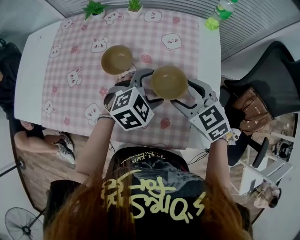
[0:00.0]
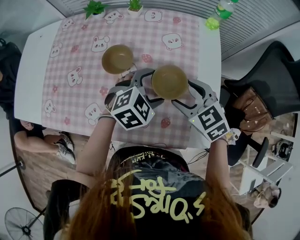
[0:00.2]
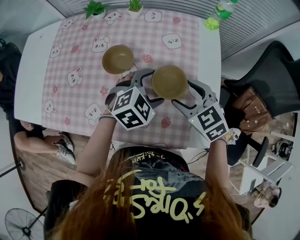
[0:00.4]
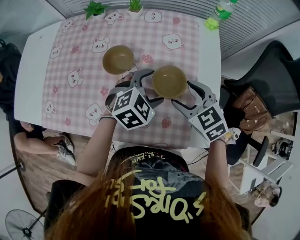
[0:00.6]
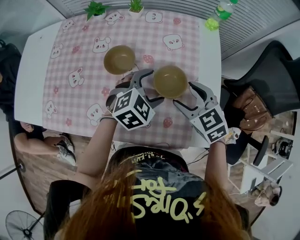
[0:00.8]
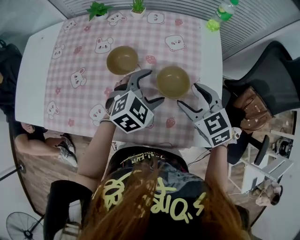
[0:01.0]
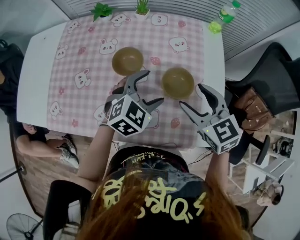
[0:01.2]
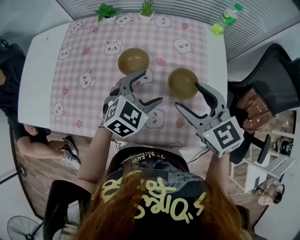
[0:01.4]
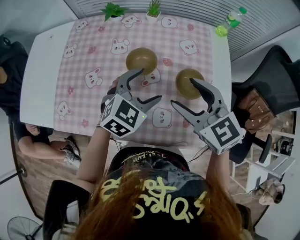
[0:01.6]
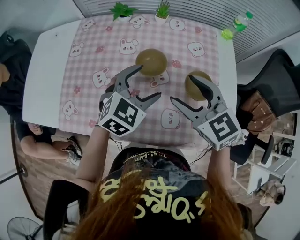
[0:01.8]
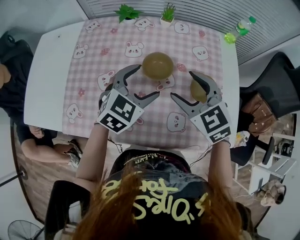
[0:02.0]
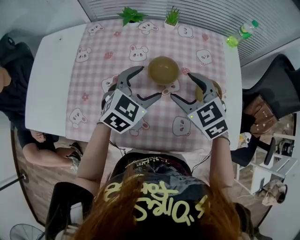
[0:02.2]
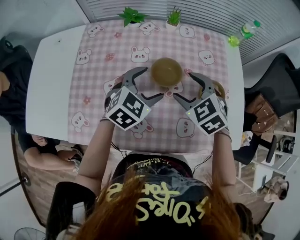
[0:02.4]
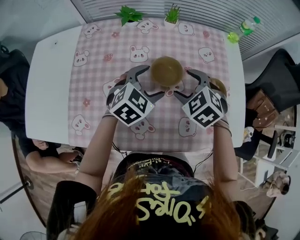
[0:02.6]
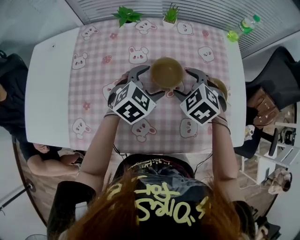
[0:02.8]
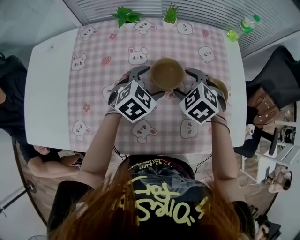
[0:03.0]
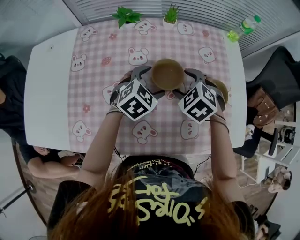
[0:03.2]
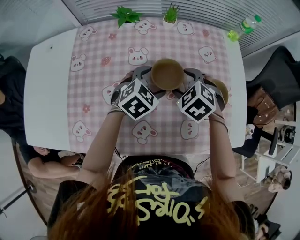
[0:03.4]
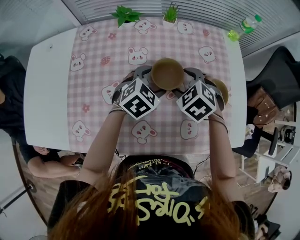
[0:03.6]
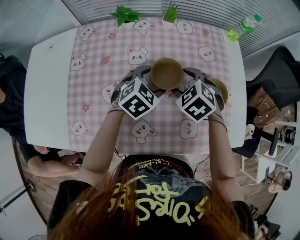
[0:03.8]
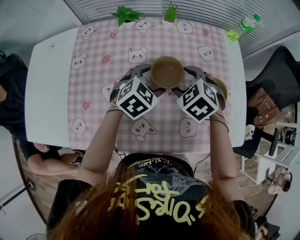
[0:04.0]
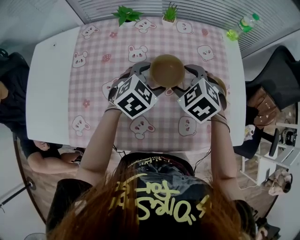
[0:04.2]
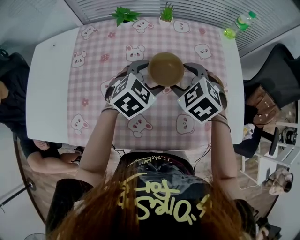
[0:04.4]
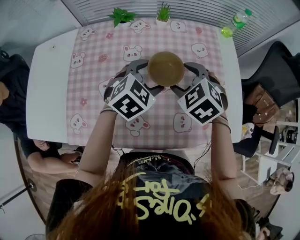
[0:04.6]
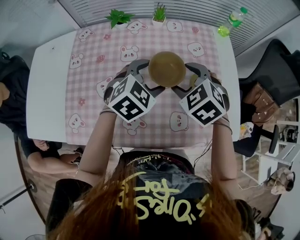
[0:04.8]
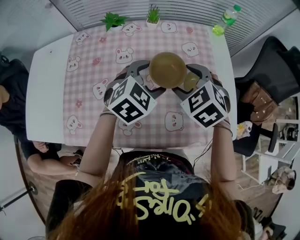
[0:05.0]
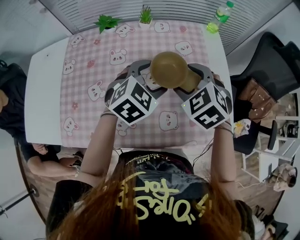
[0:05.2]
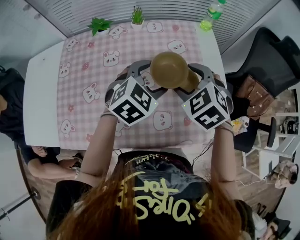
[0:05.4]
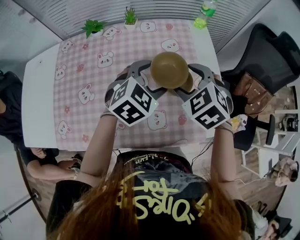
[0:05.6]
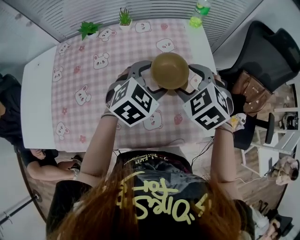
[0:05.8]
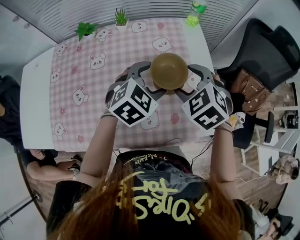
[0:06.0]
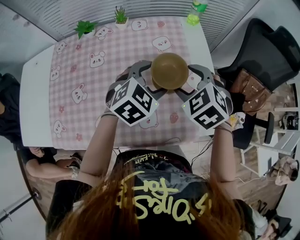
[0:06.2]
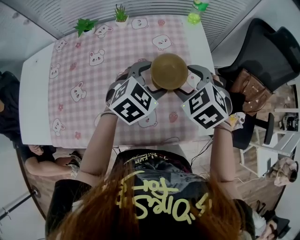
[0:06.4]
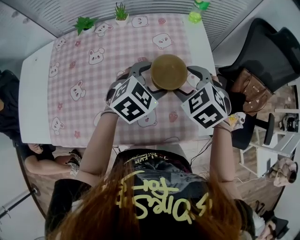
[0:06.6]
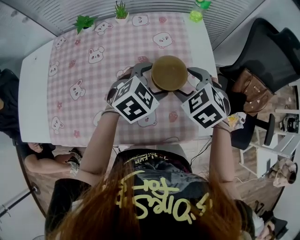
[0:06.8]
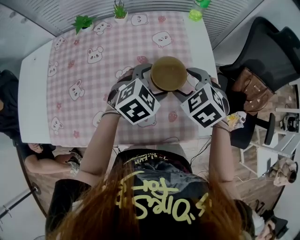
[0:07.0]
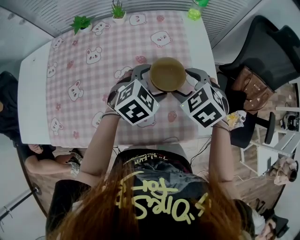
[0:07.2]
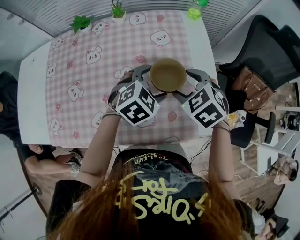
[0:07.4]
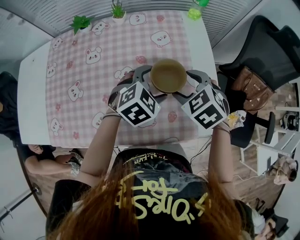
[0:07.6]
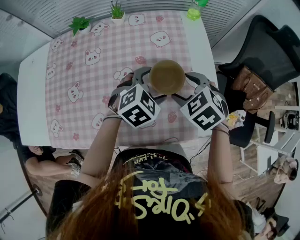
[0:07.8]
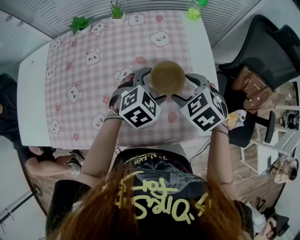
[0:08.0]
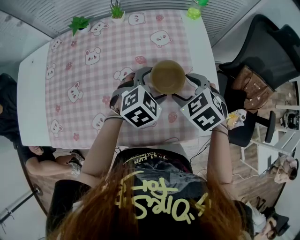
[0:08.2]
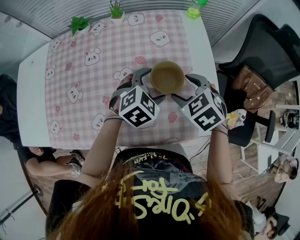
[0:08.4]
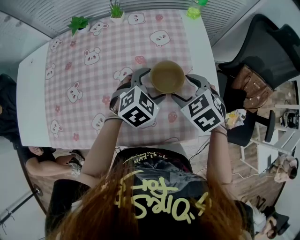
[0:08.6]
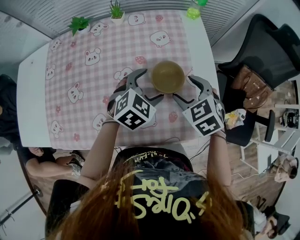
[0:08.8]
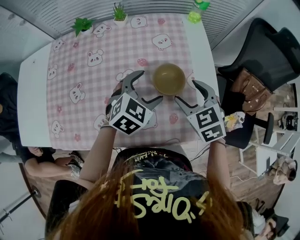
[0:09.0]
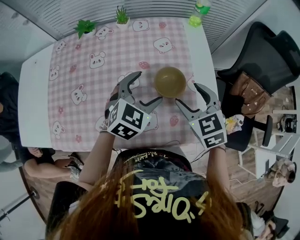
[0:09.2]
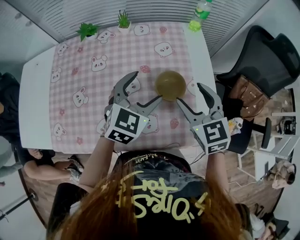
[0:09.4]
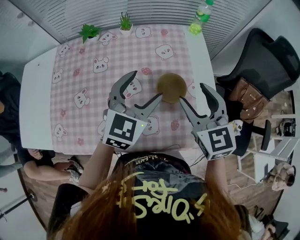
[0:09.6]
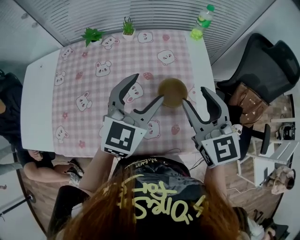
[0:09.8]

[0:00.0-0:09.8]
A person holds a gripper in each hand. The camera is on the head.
0:00.0 to 0:01.4: The right gripper goes some 10 cm upward. Meanwhile the left gripper is displaced to the left by approximately 10 cm.
0:01.4 to 0:02.8: The right gripper heads to the left, downward and forward, covering some 20 cm, and points its fingers roughly 30 degrees further downward. The left gripper shifts some 15 cm to the left and forward.
0:02.8 to 0:04.2: There are only small adjustments of the grippers.
0:04.2 to 0:05.6: Both grippers move to the right and upward, some 15 cm.
0:05.6 to 0:07.0: The grippers both shift downward by about 5 cm.
0:07.0 to 0:08.4: The grippers stay close to where they were, moving slightly.
0:08.4 to 0:09.8: Both grippers move upward, about 15 cm. The right gripper points its fingers some 40 degrees further upward. The left gripper tilts its fingers approximately 40 degrees upward.

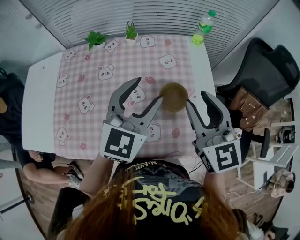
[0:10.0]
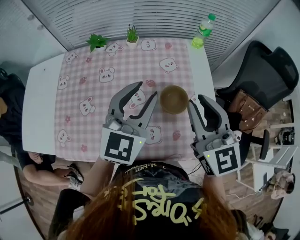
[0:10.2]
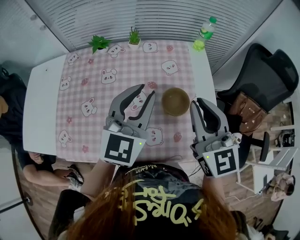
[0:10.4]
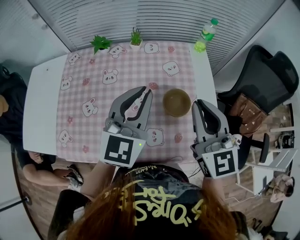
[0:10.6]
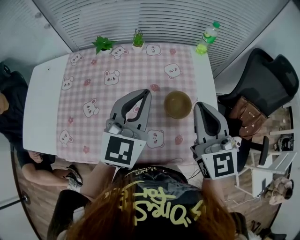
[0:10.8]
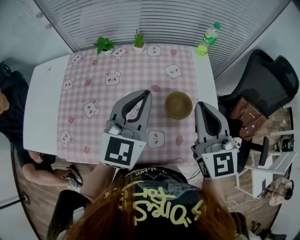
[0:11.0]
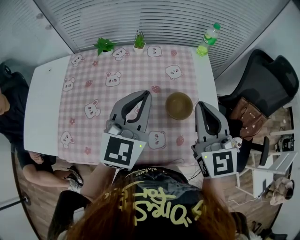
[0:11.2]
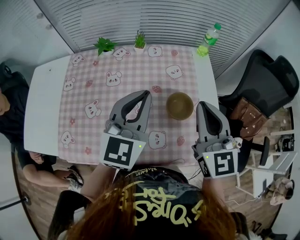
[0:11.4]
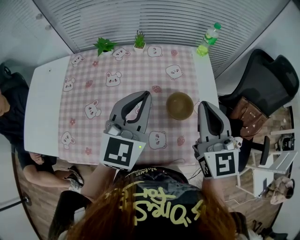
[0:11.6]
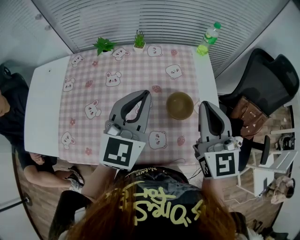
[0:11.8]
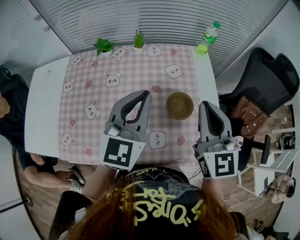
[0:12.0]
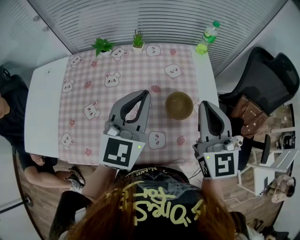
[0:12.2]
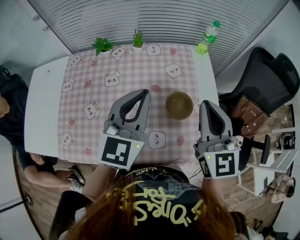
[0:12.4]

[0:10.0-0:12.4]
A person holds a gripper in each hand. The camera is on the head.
0:10.0 to 0:11.2: The right gripper closes up, while the left gripper closes.
0:11.2 to 0:12.4: The grippers stay close to where they were, moving slightly.

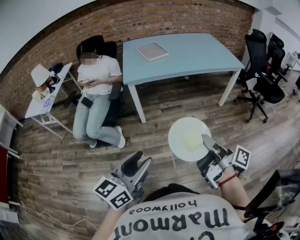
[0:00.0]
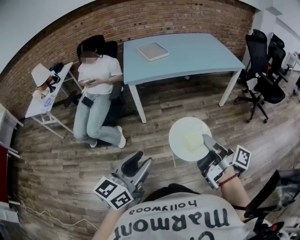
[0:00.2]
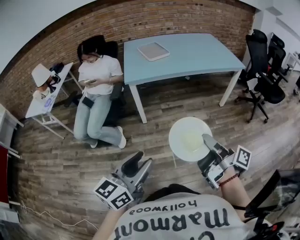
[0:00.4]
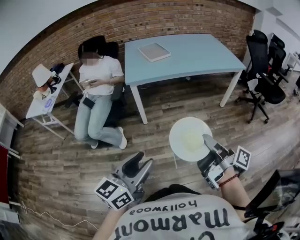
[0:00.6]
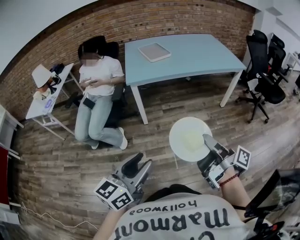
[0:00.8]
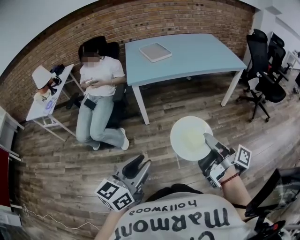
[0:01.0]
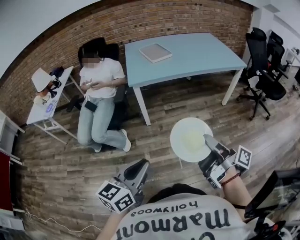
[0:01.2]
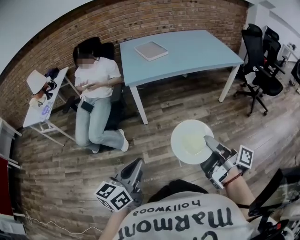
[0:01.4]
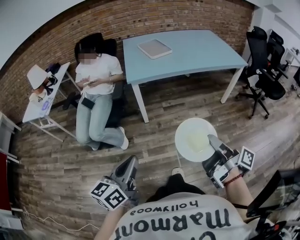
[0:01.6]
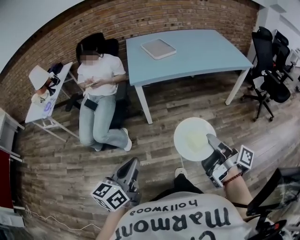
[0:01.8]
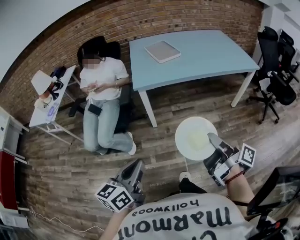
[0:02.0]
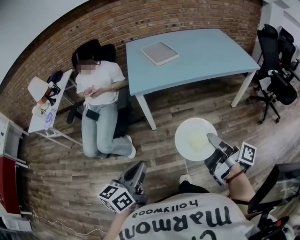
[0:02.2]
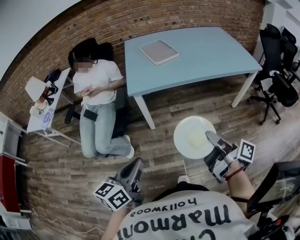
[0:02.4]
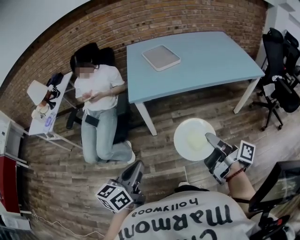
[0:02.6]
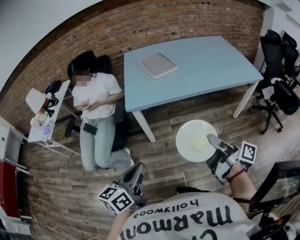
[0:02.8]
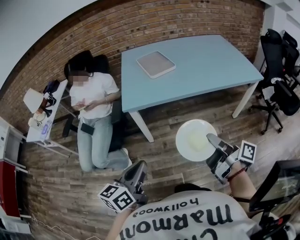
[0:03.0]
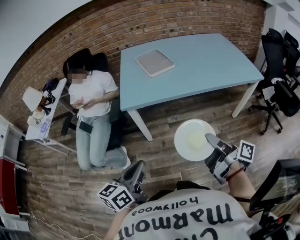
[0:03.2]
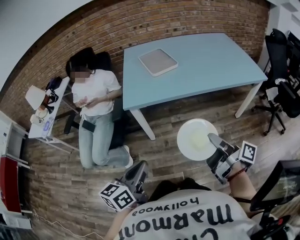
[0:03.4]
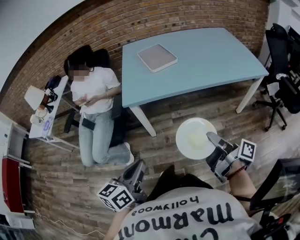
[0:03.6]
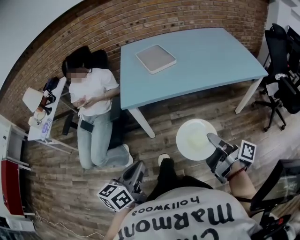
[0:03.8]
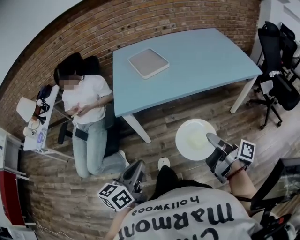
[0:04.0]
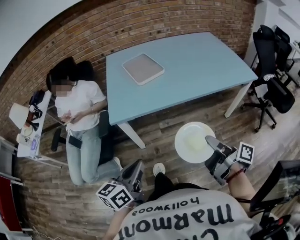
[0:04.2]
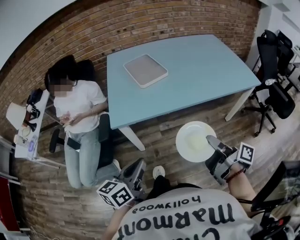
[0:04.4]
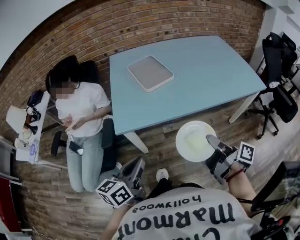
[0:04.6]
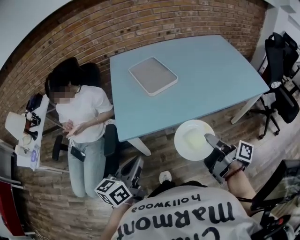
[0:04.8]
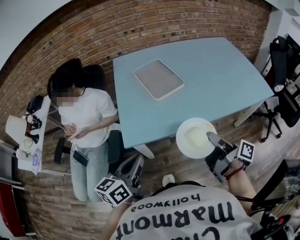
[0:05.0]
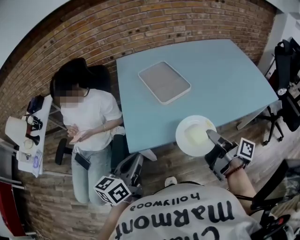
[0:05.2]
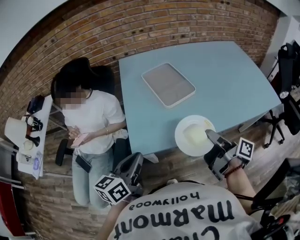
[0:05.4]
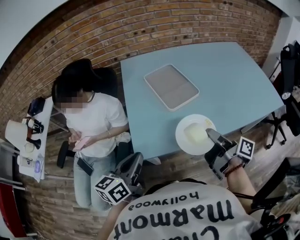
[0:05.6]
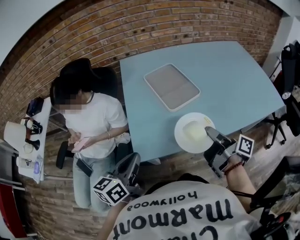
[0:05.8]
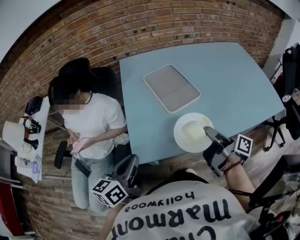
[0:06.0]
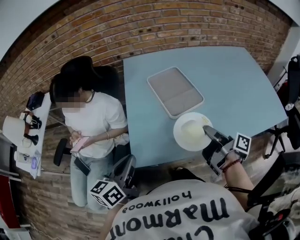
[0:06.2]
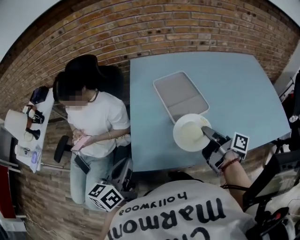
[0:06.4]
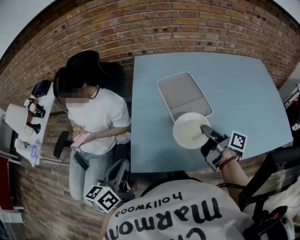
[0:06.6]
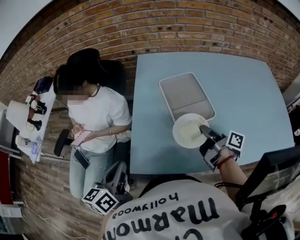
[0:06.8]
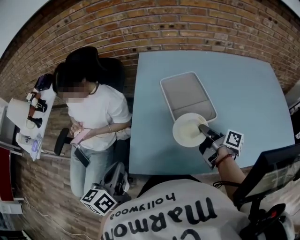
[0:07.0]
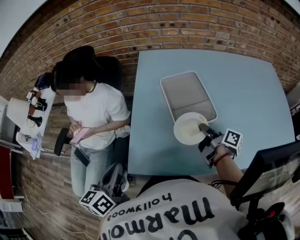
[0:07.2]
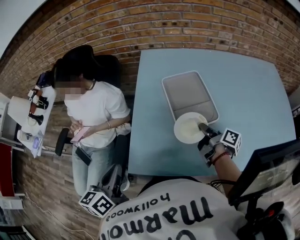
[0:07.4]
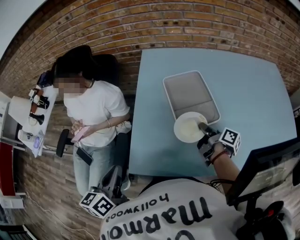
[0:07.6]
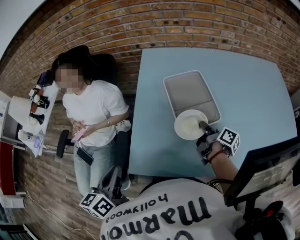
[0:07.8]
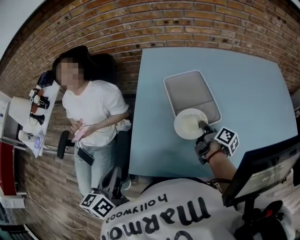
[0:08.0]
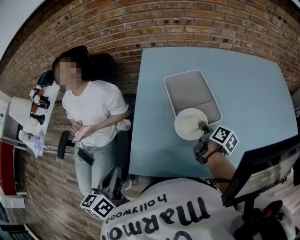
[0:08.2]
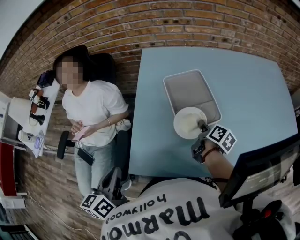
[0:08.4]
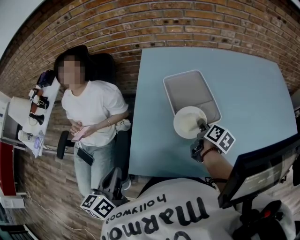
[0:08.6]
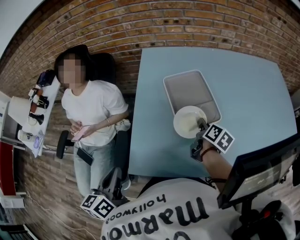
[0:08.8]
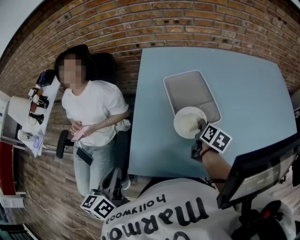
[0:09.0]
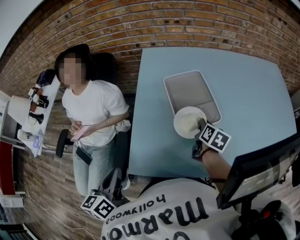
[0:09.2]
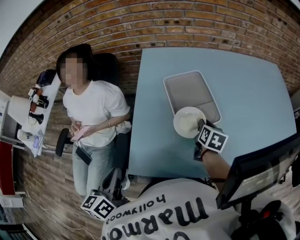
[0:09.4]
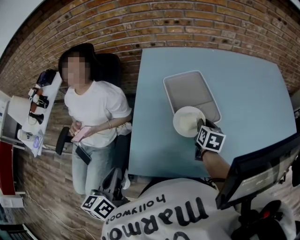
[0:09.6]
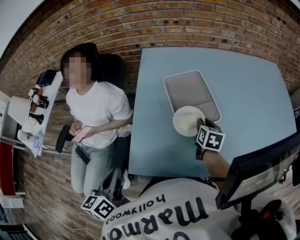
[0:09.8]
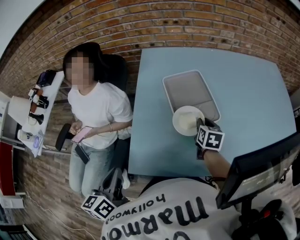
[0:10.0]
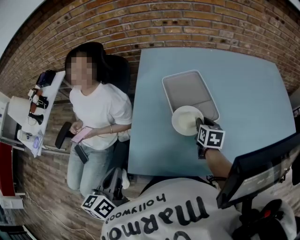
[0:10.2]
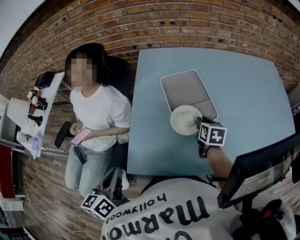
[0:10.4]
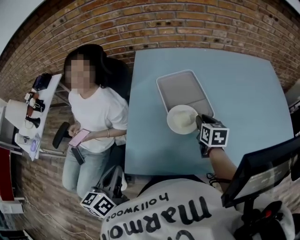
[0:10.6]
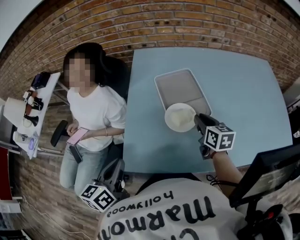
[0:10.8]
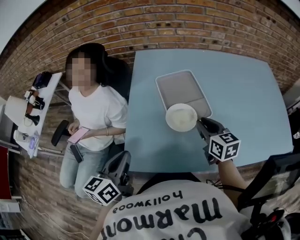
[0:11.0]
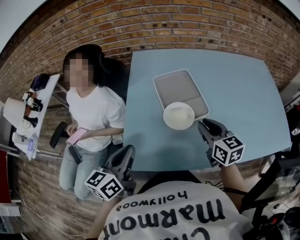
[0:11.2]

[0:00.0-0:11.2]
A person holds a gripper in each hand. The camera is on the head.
0:00.0 to 0:01.6: The left gripper moves to the left, about 10 cm, and closes up.
0:01.6 to 0:03.2: The right gripper heads forward, covering roughly 25 cm. The left gripper heads forward and to the right, covering some 25 cm.
0:03.2 to 0:04.8: Both grippers travel together forward, some 20 cm.
0:04.8 to 0:06.4: The left gripper goes approximately 20 cm forward and to the left. The right gripper goes approximately 30 cm forward.
0:06.4 to 0:08.0: The right gripper goes approximately 15 cm forward and downward.
0:08.0 to 0:09.6: The right gripper rotates around the line of its fingers by roughly 50 degrees, counterclockwise from behind.
0:09.6 to 0:11.2: The right gripper travels upward and backward by about 15 cm, and changes its angle by approximately 30 degrees. Meanwhile the left gripper shifts roughly 10 cm to the right and forward.
